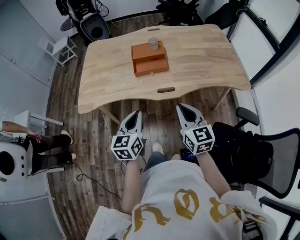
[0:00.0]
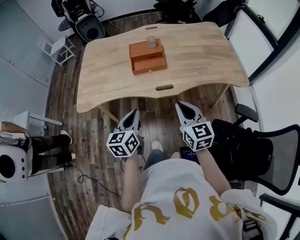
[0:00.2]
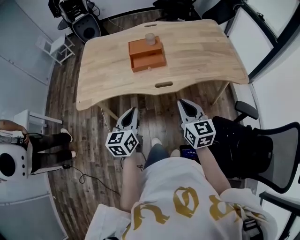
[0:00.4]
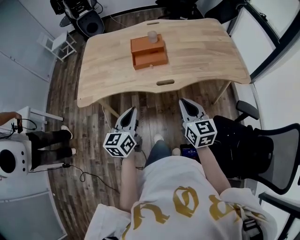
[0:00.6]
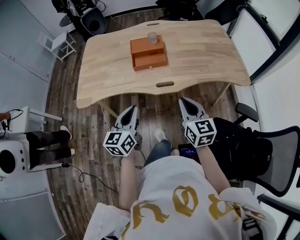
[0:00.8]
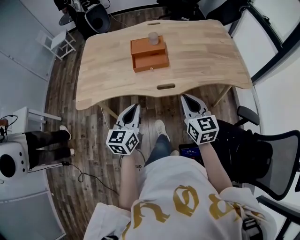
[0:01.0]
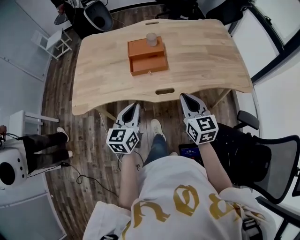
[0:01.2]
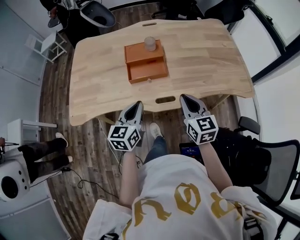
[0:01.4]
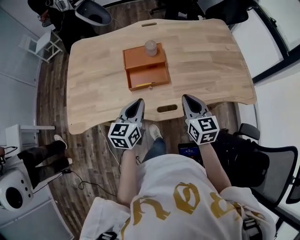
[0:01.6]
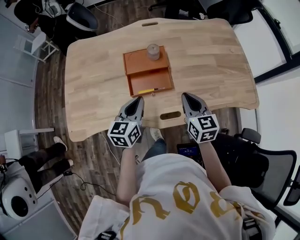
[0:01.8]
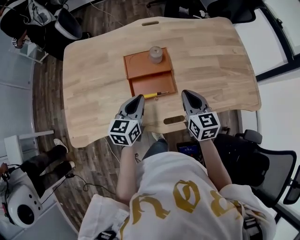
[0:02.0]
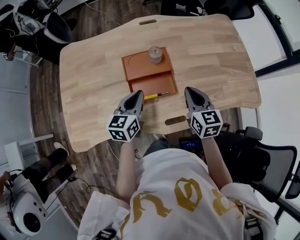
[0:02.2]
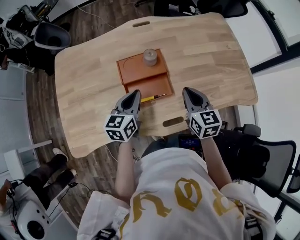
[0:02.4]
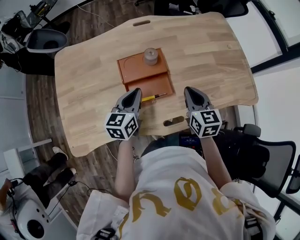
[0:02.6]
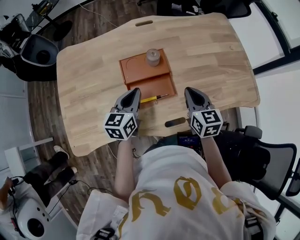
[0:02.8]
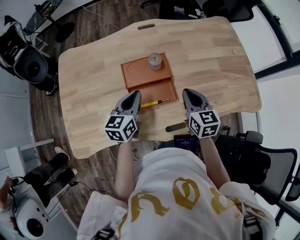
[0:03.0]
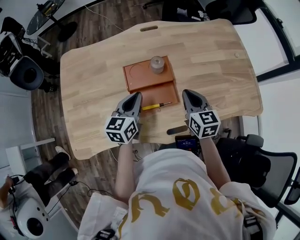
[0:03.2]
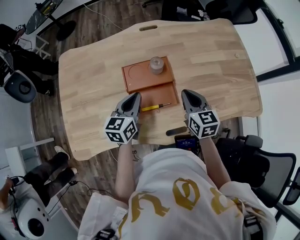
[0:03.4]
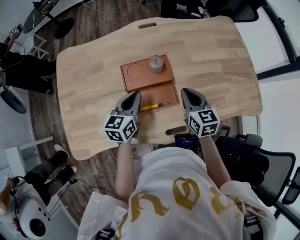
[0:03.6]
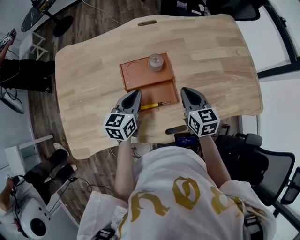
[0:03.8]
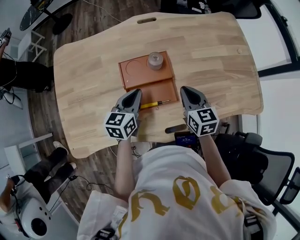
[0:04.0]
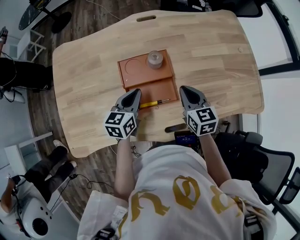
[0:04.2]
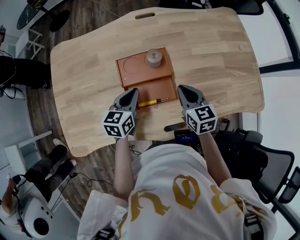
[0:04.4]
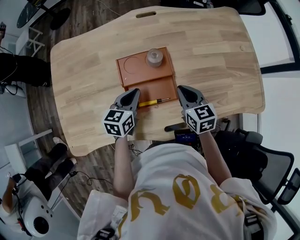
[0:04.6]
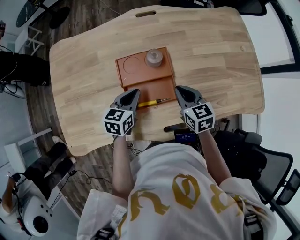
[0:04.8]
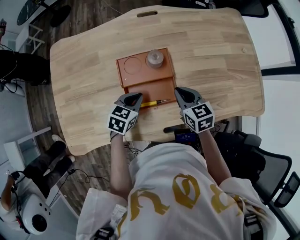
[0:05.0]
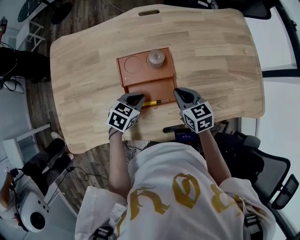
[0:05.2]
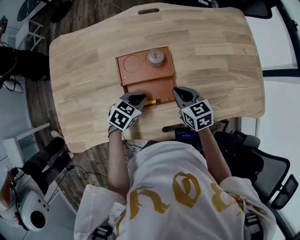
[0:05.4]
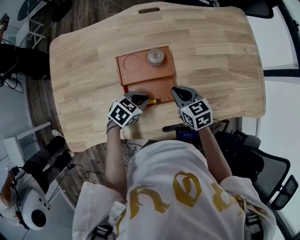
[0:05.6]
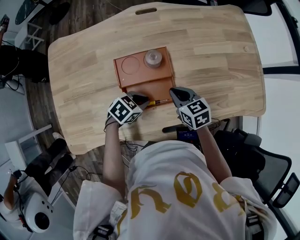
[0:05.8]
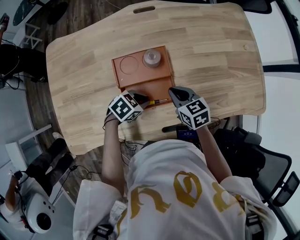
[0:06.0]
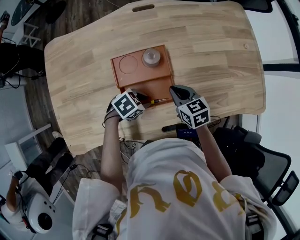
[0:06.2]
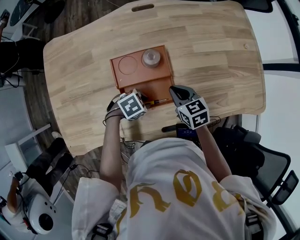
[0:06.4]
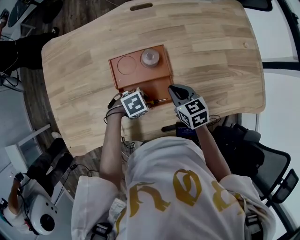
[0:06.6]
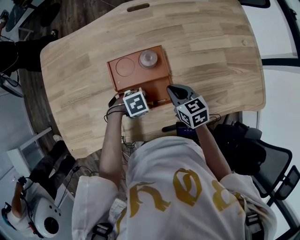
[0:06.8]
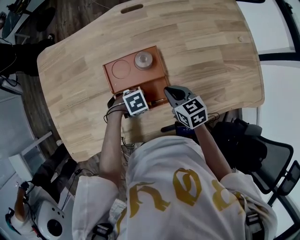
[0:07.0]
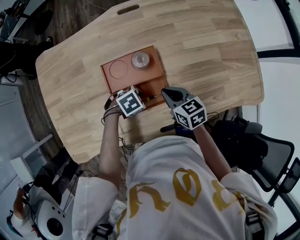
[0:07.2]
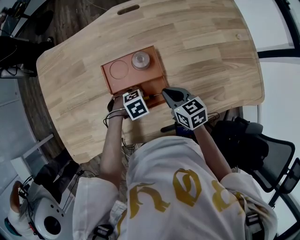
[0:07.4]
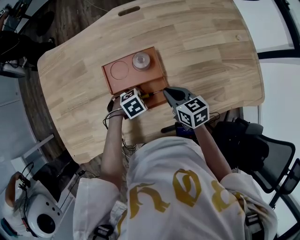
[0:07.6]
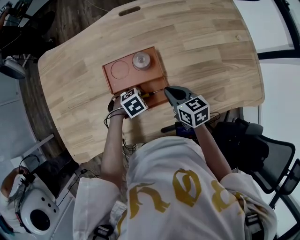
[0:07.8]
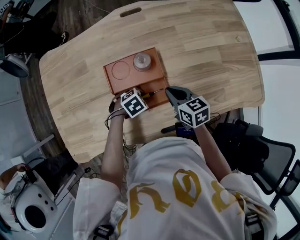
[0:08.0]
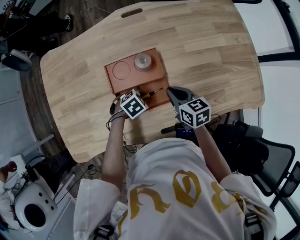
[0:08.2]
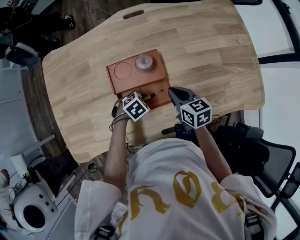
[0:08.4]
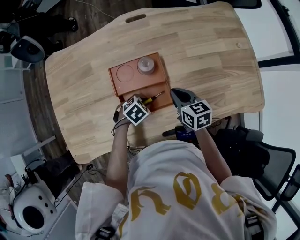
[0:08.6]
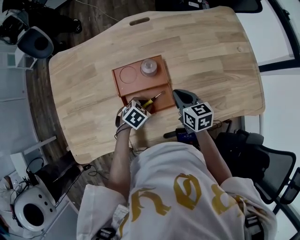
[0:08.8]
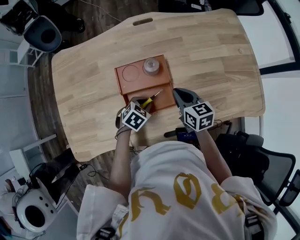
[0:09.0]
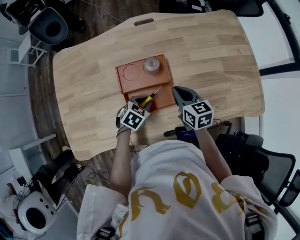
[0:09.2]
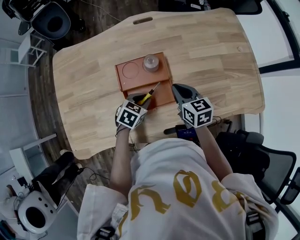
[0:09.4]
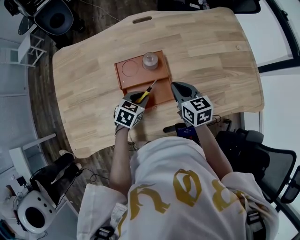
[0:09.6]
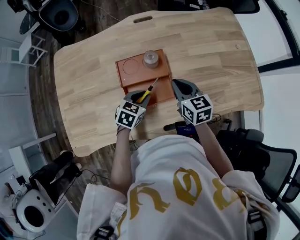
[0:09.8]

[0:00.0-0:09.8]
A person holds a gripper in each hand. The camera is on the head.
0:00.0 to 0:01.4: Both grippers travel together forward, some 15 cm.
0:01.4 to 0:02.8: Both grippers move forward, about 20 cm.
0:02.8 to 0:04.2: The right gripper goes roughly 5 cm forward, while the left gripper is displaced downward by roughly 5 cm.
0:04.2 to 0:05.6: The right gripper goes some 5 cm downward; the left gripper goes roughly 10 cm downward, and changes its angle by roughly 40 degrees.
0:05.6 to 0:07.0: The left gripper goes roughly 5 cm downward, changes its angle by roughly 40 degrees, and opens its fingers.
0:07.0 to 0:08.4: The grippers move only a little.
0:08.4 to 0:09.8: The left gripper shifts approximately 10 cm upward, and rotates approximately 40 degrees. Meanwhile the right gripper shifts approximately 5 cm upward.

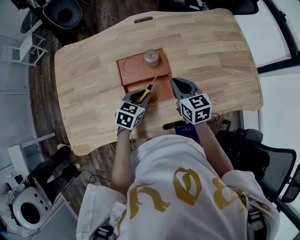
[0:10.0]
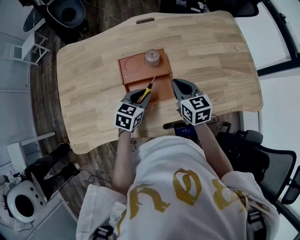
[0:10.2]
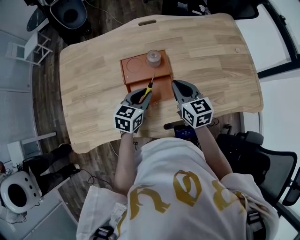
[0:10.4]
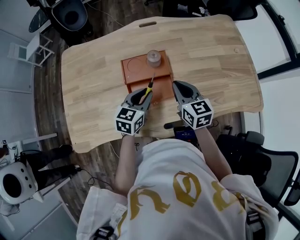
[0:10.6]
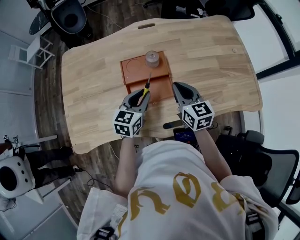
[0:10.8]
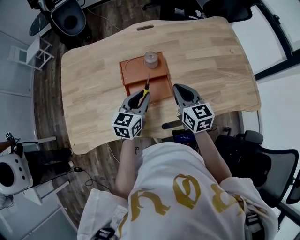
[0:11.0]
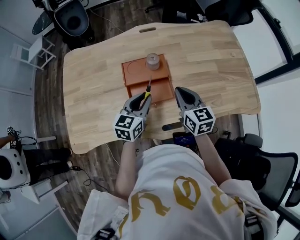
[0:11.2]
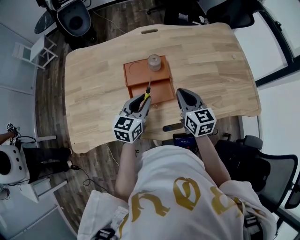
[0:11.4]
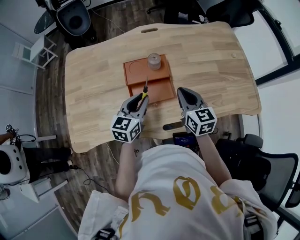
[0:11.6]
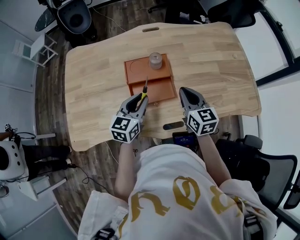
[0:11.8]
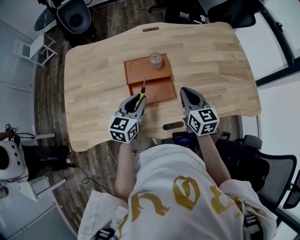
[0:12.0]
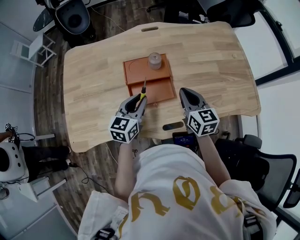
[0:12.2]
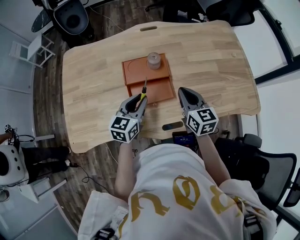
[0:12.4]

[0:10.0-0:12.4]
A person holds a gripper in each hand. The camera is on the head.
0:10.0 to 0:11.2: The right gripper moves backward, about 5 cm, while the left gripper heads upward, covering approximately 10 cm, and changes its angle by approximately 30 degrees.
0:11.2 to 0:12.4: There are only small adjustments of the grippers.

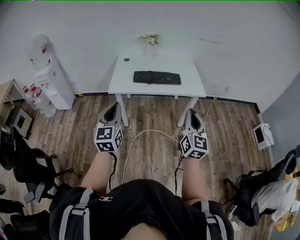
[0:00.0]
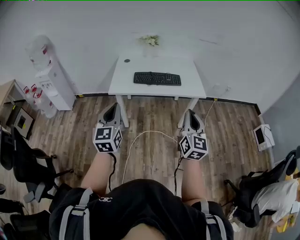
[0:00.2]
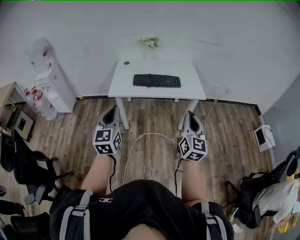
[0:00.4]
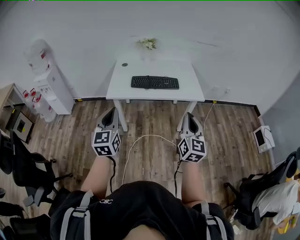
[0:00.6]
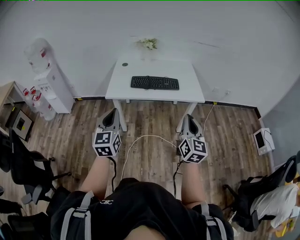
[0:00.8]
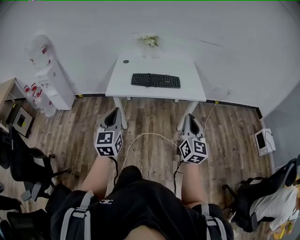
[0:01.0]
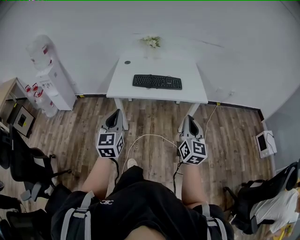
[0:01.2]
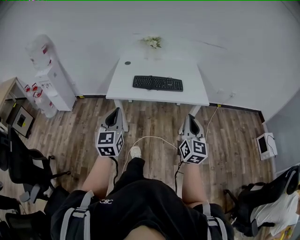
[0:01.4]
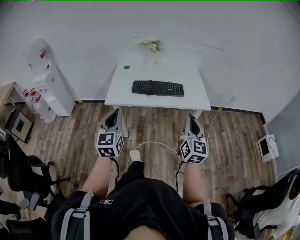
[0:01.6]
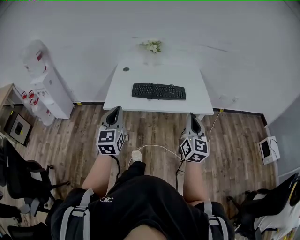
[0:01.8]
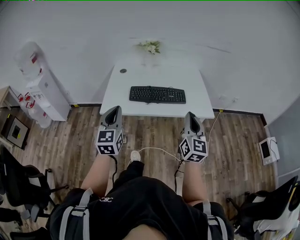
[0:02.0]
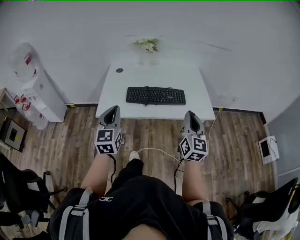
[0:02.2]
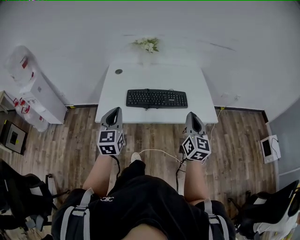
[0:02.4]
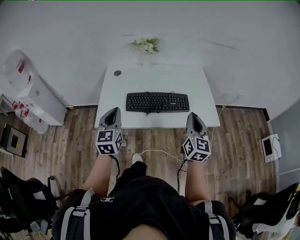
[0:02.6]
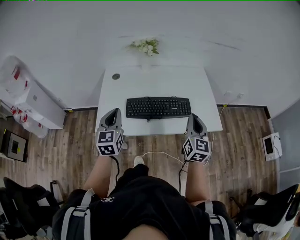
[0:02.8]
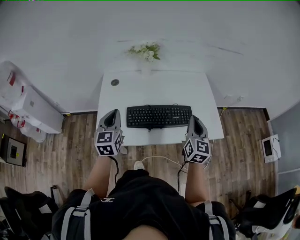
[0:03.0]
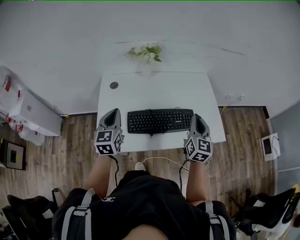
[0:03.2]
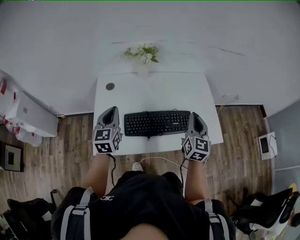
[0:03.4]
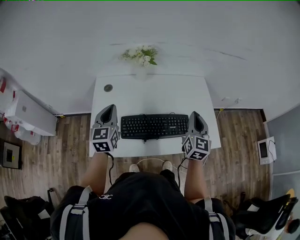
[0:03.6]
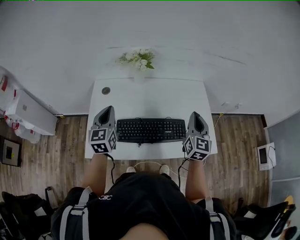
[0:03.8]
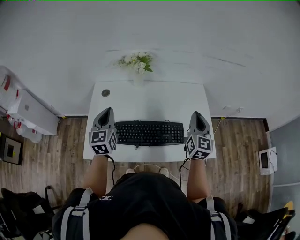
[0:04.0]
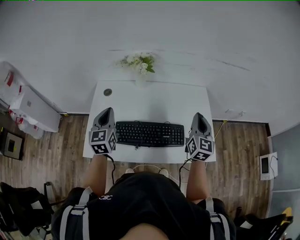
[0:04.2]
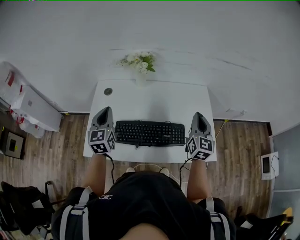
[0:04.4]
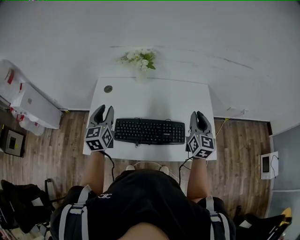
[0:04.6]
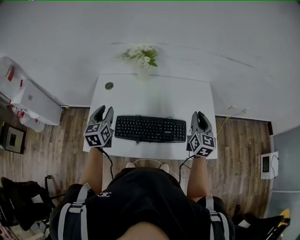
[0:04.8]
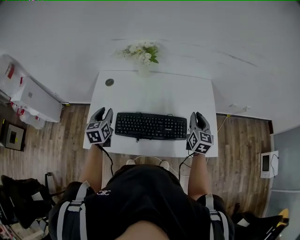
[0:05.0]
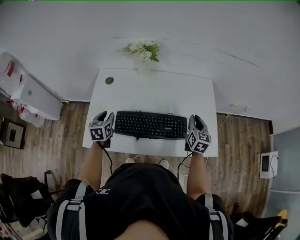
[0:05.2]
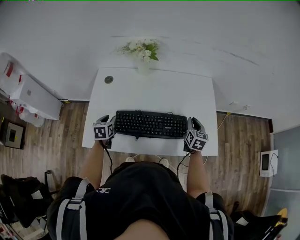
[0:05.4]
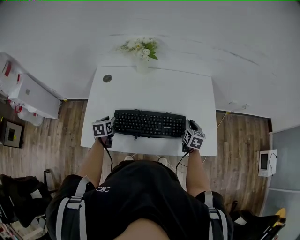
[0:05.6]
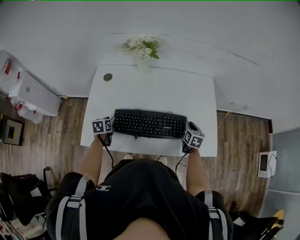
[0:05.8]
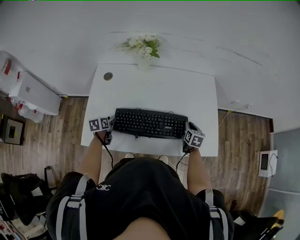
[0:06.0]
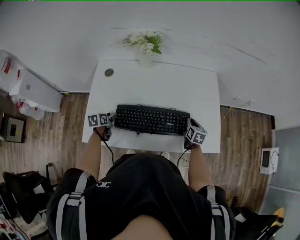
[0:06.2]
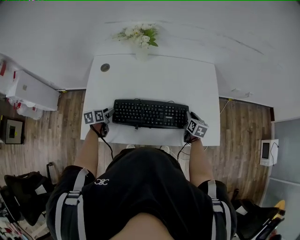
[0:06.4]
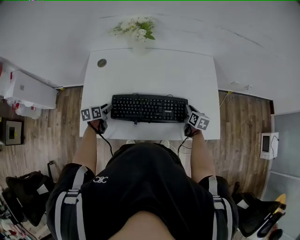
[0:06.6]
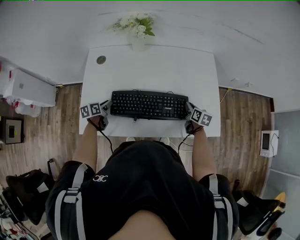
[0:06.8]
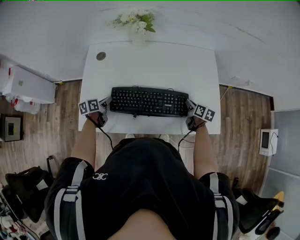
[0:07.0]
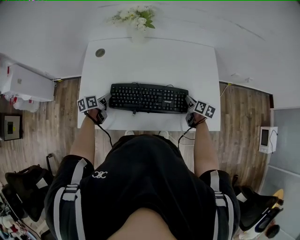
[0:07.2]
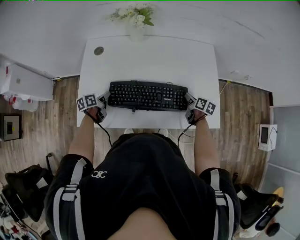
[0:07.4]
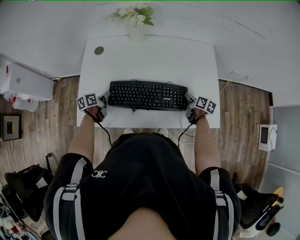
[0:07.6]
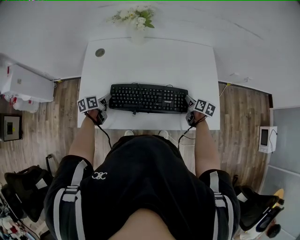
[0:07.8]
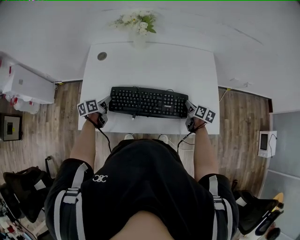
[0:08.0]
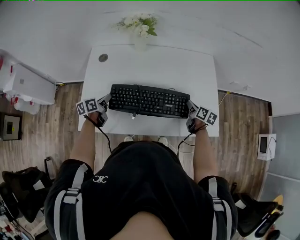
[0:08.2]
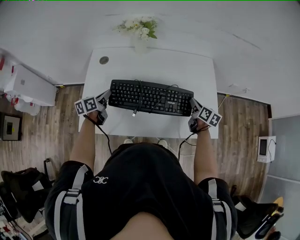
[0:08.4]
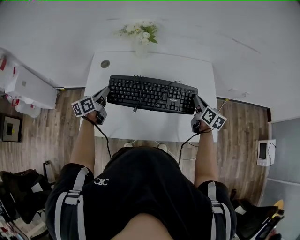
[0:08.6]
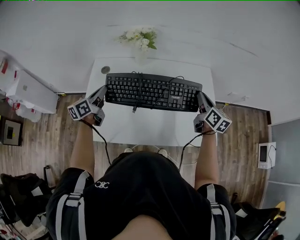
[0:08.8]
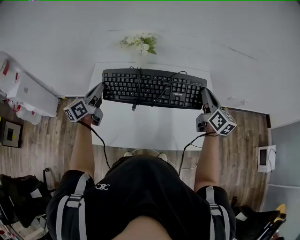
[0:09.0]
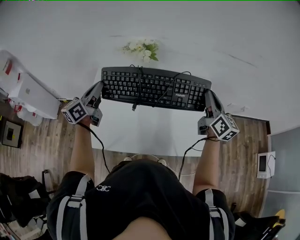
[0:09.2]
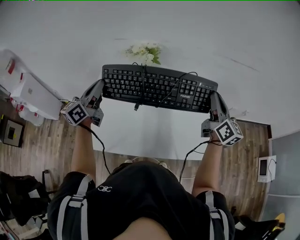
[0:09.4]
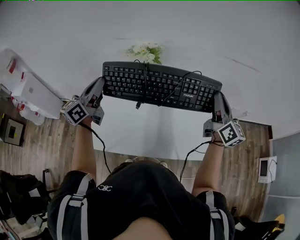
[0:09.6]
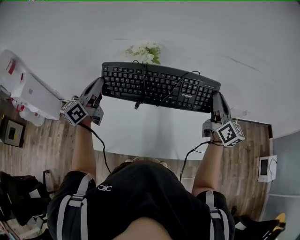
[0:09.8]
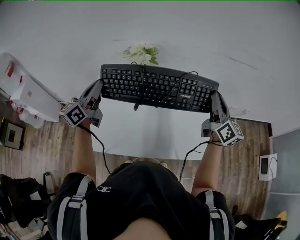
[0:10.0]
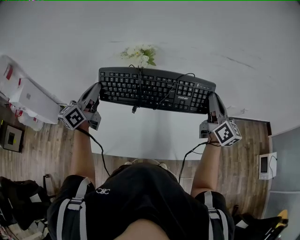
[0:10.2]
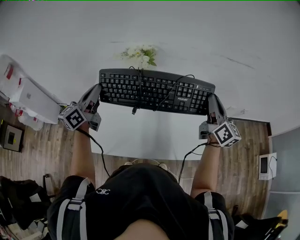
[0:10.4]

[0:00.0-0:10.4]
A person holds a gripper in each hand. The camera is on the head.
0:00.0 to 0:01.4: The two grippers go about 5 cm forward.
0:01.4 to 0:03.0: The pair of grippers is taken forward, approximately 50 cm.
0:03.0 to 0:04.4: The left gripper heads forward, covering approximately 10 cm, while the right gripper travels forward and to the right by approximately 20 cm.
0:04.4 to 0:06.0: The grippers both shift downward by some 30 cm. The left gripper angles its fingers downward, by approximately 40 degrees, and opens. Meanwhile the right gripper points its fingers approximately 40 degrees further downward.
0:06.0 to 0:07.4: The left gripper rotates about 20 degrees, and closes. The right gripper changes its angle by approximately 30 degrees.
0:07.4 to 0:09.0: Both grippers travel together upward, approximately 30 cm. The right gripper angles its fingers upward, by about 40 degrees; the left gripper tips its fingers upward by about 30 degrees.
0:09.0 to 0:10.4: The two grippers go about 10 cm upward.

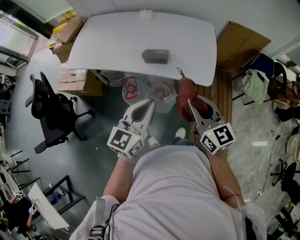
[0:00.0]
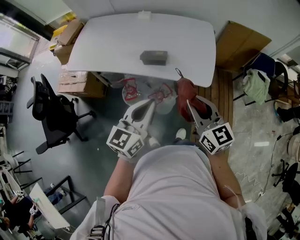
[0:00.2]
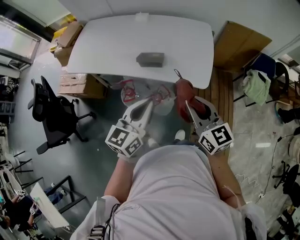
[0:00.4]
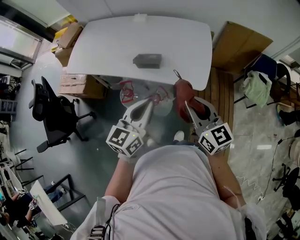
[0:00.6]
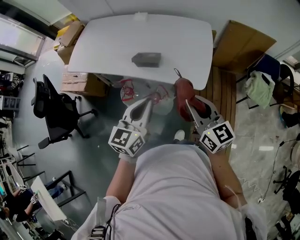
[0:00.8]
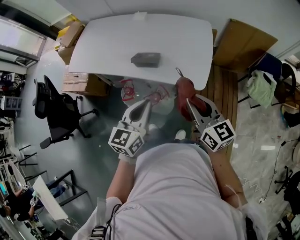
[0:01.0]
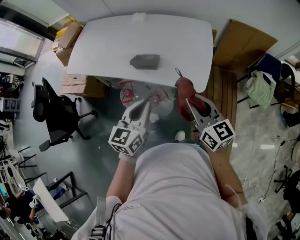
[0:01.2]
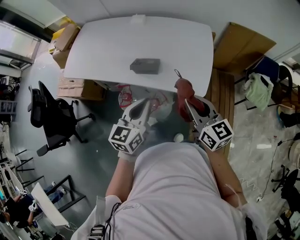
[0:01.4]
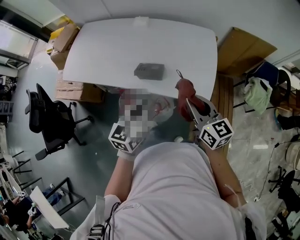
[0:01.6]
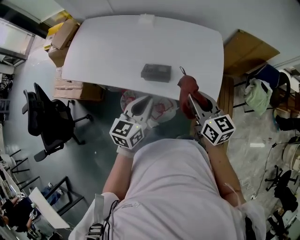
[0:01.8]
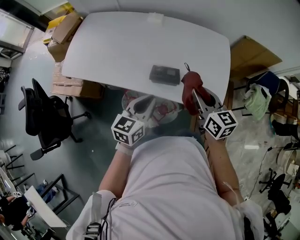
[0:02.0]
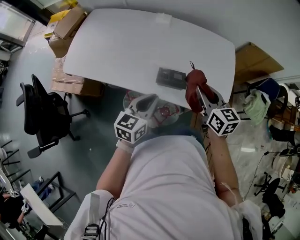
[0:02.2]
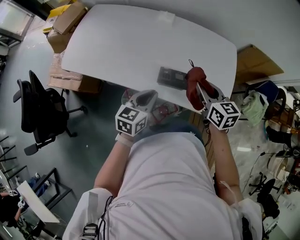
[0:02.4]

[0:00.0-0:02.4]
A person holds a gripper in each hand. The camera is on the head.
0:00.0 to 0:01.2: The grippers both shift to the right and forward by some 10 cm.
0:01.2 to 0:02.4: The left gripper shifts about 25 cm forward, to the left and downward. Meanwhile the right gripper is displaced forward and to the left by approximately 25 cm, and changes its angle by roughly 20 degrees.
